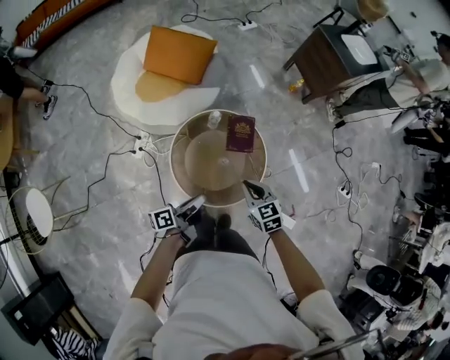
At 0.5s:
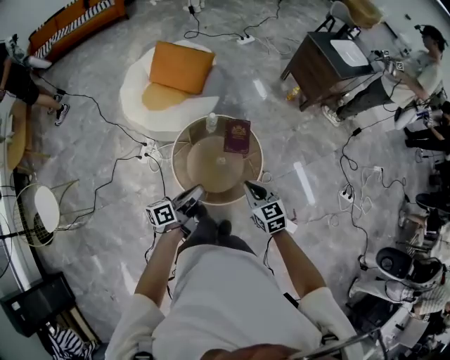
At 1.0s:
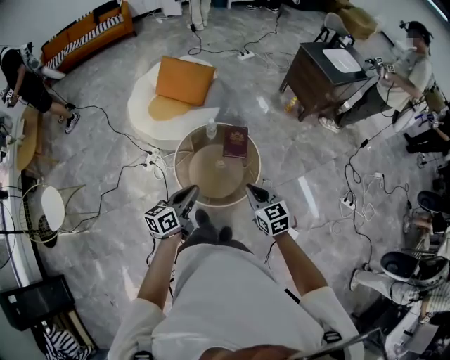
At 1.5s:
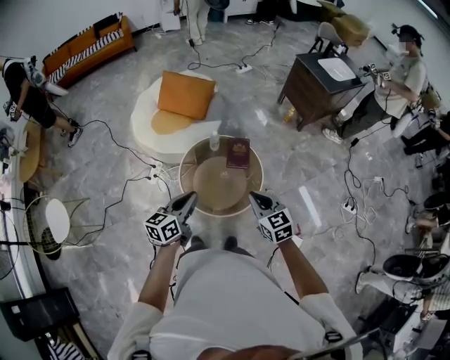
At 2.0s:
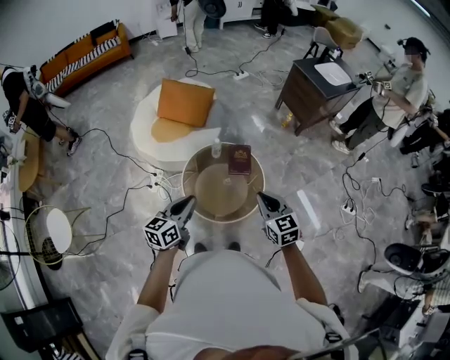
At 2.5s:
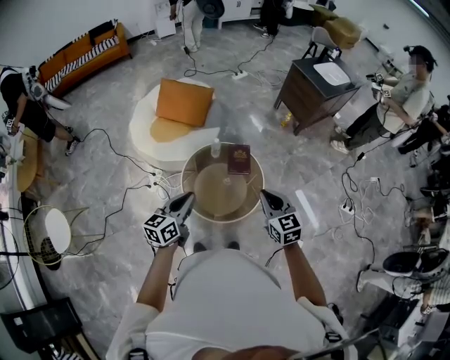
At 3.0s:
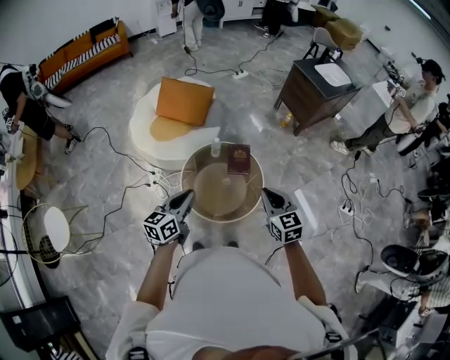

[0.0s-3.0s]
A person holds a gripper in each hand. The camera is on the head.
0.0s to 1.5s: The right gripper is displaced upward by approximately 15 cm.
1.5s to 3.0s: The right gripper travels upward by some 5 cm.

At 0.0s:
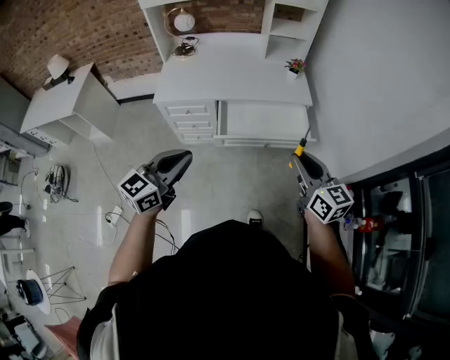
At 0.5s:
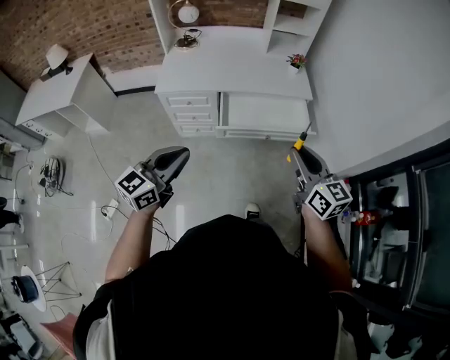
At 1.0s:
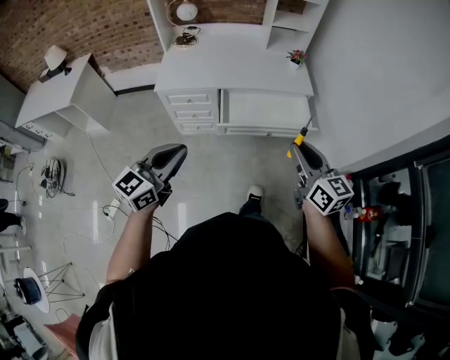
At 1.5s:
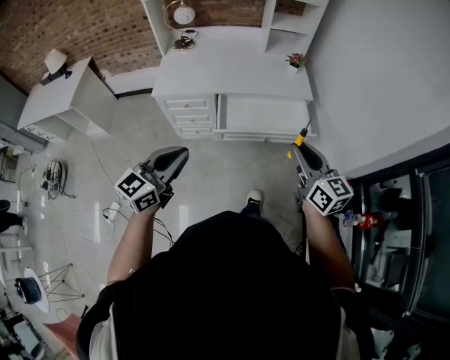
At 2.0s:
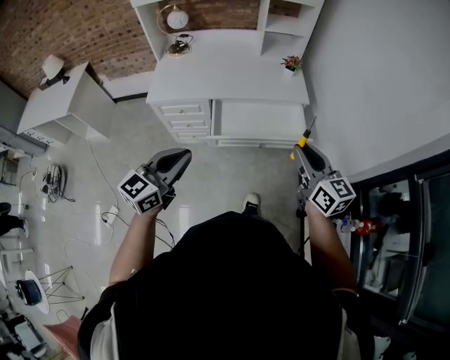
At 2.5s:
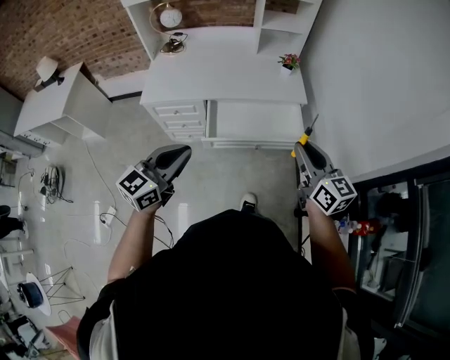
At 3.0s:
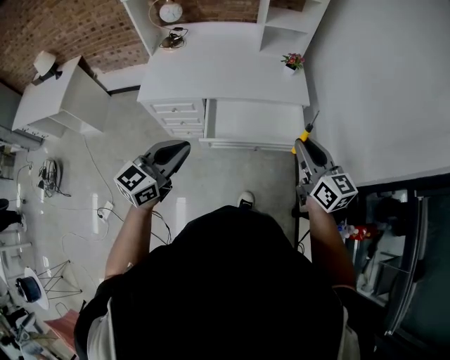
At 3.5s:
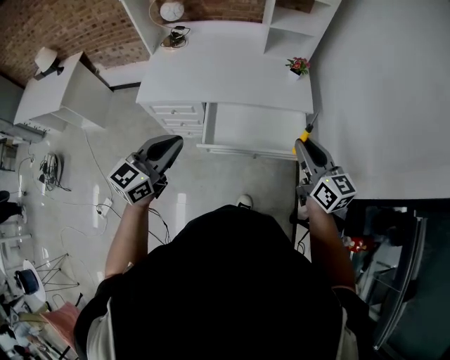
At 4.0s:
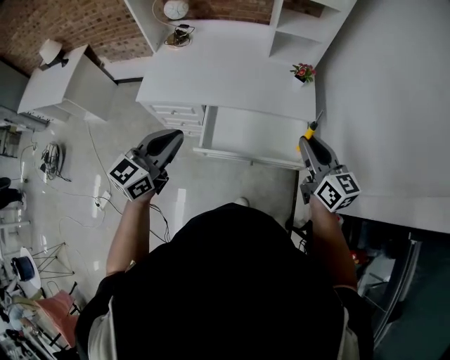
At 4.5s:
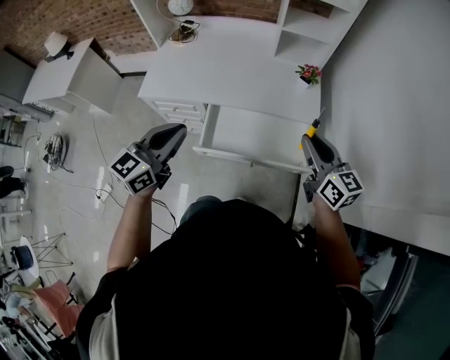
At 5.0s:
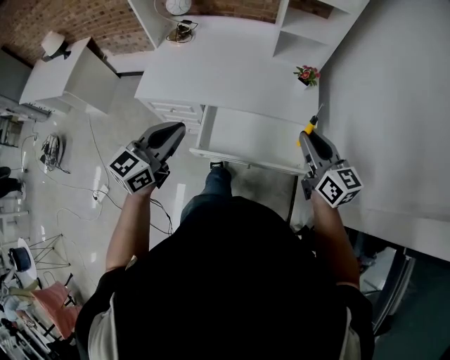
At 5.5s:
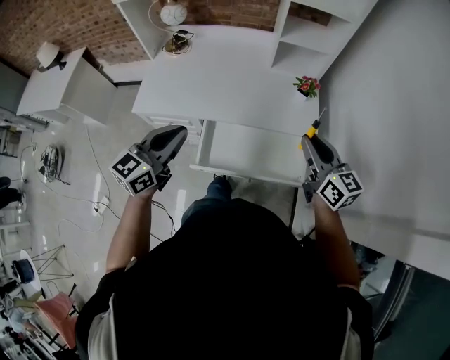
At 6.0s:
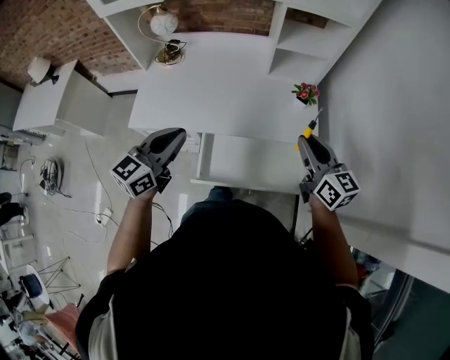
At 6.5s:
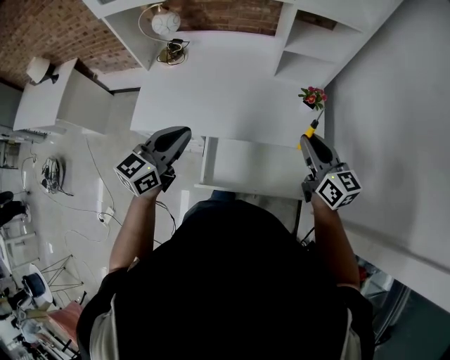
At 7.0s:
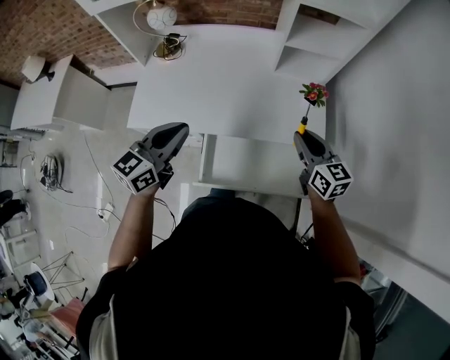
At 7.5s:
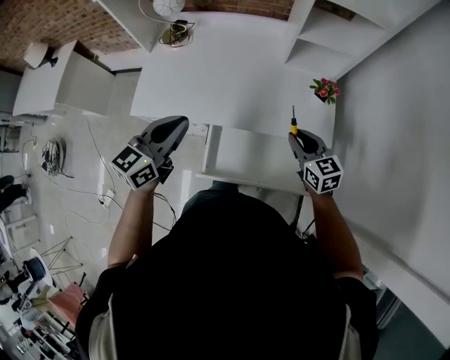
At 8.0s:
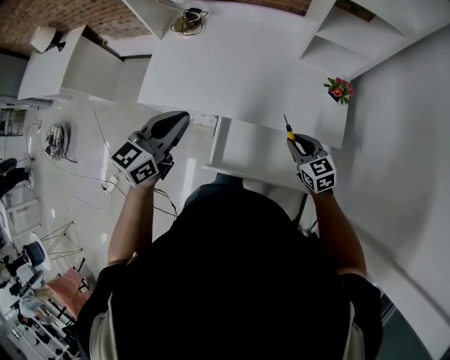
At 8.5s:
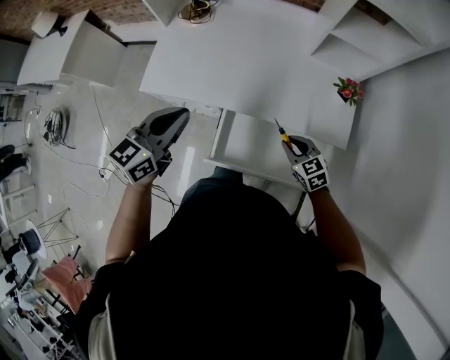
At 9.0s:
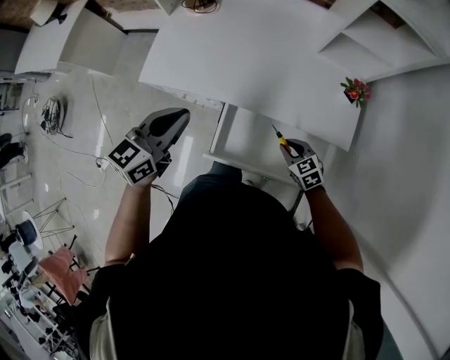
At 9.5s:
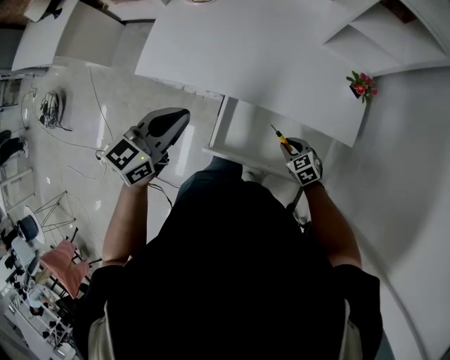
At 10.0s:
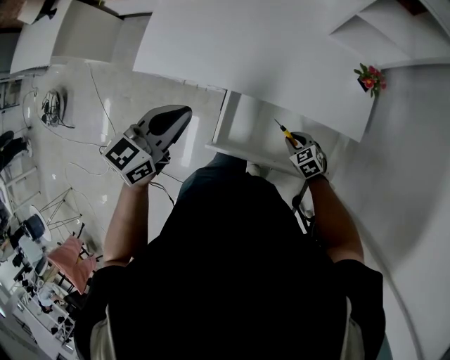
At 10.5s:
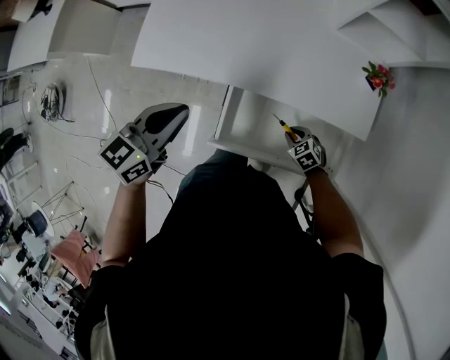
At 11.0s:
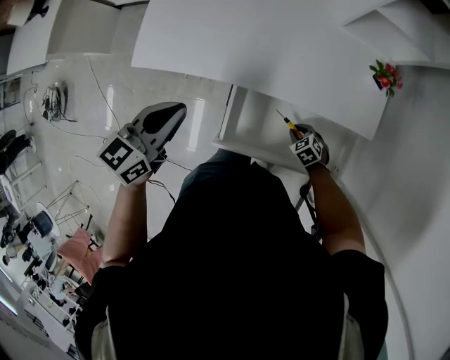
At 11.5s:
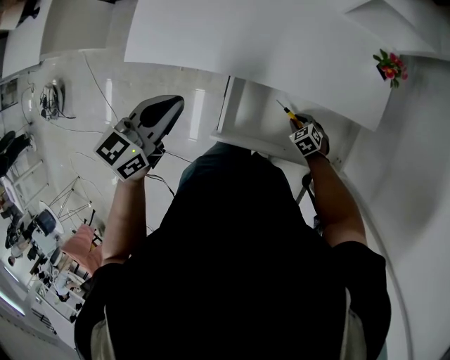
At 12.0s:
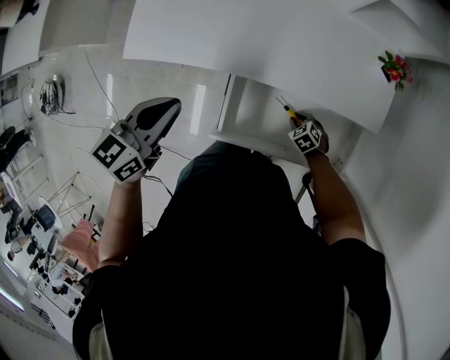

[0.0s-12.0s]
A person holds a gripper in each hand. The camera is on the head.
0.0s to 2.0s: The right gripper shifts by some 5 cm.
2.0s to 4.0s: Both grippers move forward, some 20 cm.
4.0s to 6.0s: Both grippers move forward, some 15 cm.
6.0s to 8.0s: The right gripper is displaced downward by roughly 20 cm, and rotates some 40 degrees. Meanwhile the left gripper heads forward and to the left, covering about 10 cm.
8.0s to 10.0s: The right gripper is displaced downward by roughly 20 cm, and rotates roughly 30 degrees; the left gripper goes approximately 10 cm downward.
10.0s to 12.0s: The right gripper shifts approximately 10 cm downward; the left gripper heads downward, covering roughly 5 cm.

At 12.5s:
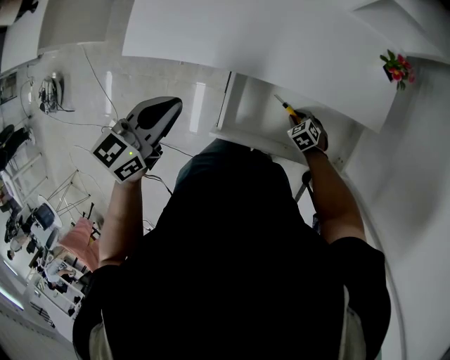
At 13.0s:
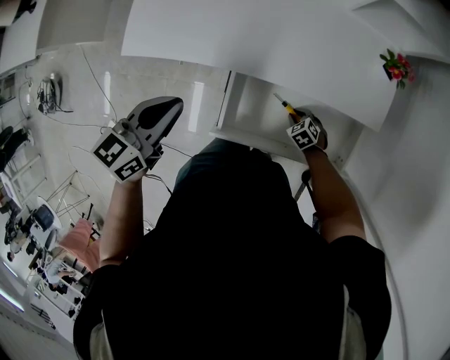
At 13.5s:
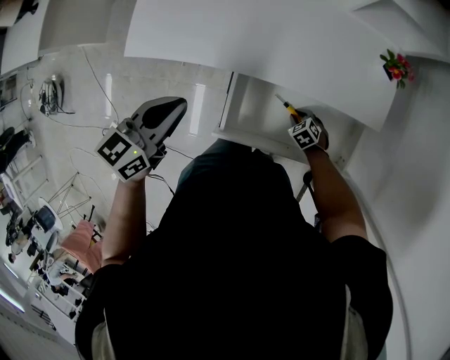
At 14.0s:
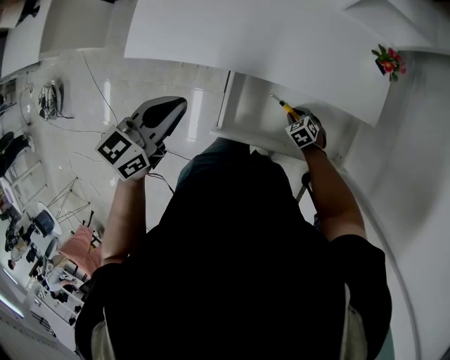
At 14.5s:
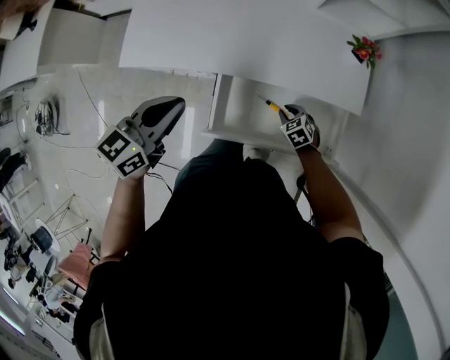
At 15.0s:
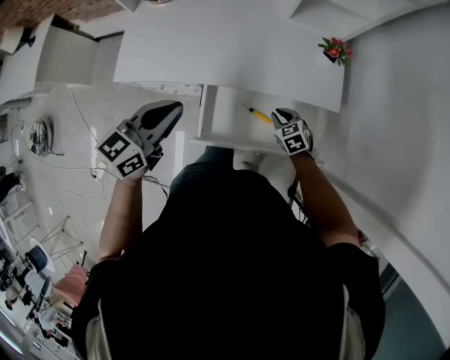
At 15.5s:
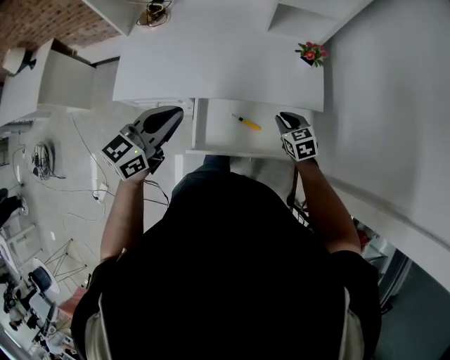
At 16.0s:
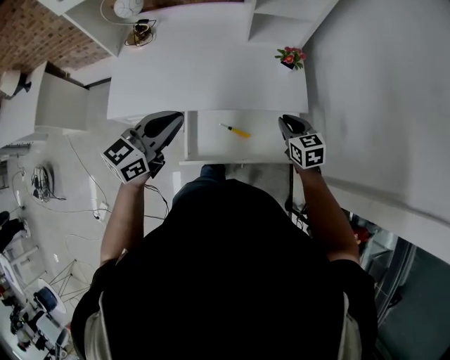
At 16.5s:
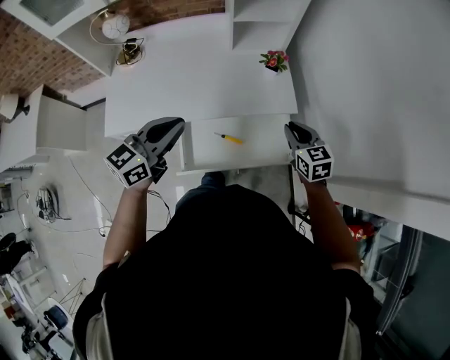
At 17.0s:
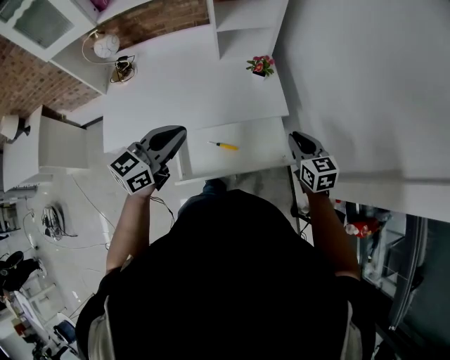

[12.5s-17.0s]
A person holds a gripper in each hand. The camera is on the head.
12.5s to 14.5s: The right gripper moves upward, approximately 10 cm. The left gripper travels upward by about 5 cm.
14.5s to 17.0s: The left gripper moves about 25 cm, and turns by roughly 20 degrees; the right gripper moves upward, about 35 cm, and tilts its fingers approximately 30 degrees upward.

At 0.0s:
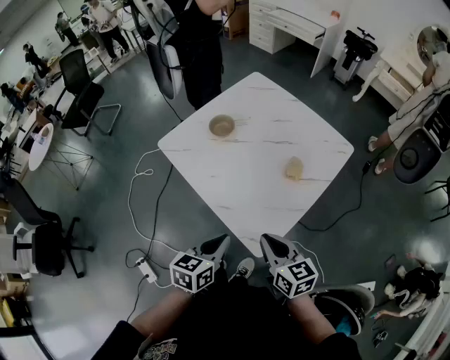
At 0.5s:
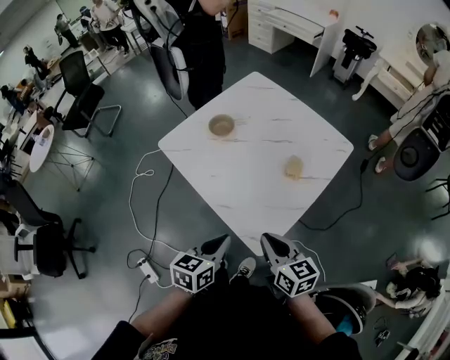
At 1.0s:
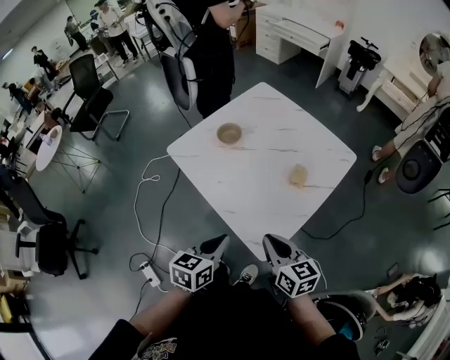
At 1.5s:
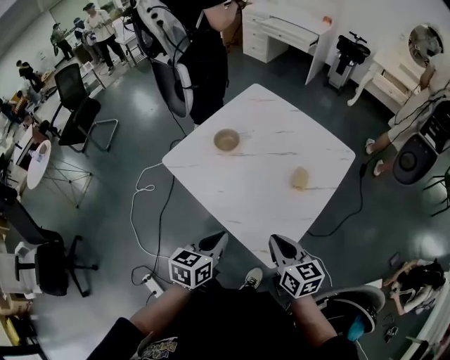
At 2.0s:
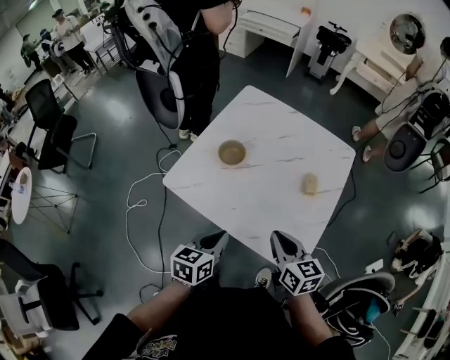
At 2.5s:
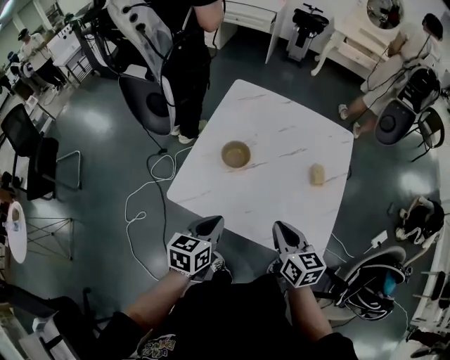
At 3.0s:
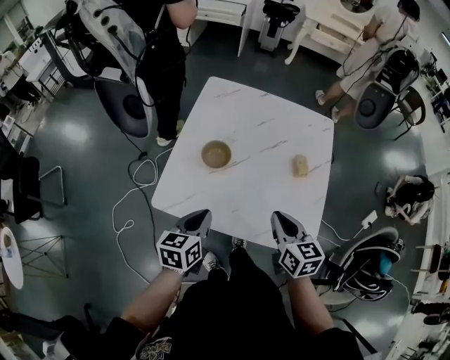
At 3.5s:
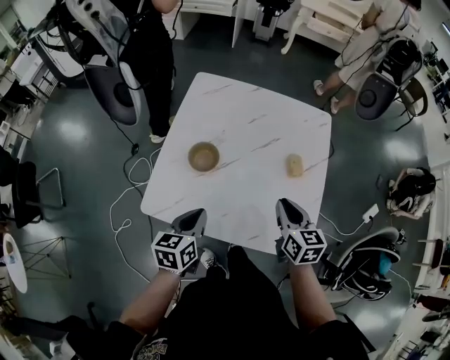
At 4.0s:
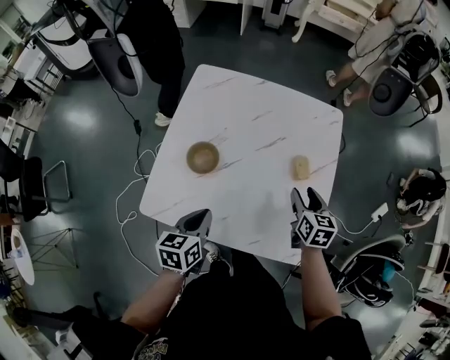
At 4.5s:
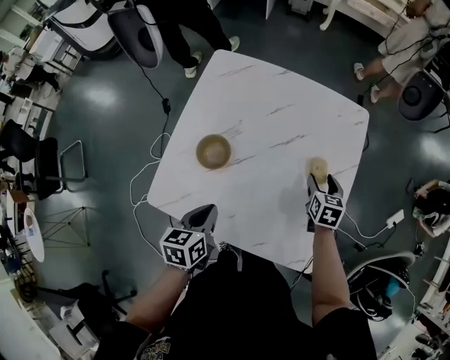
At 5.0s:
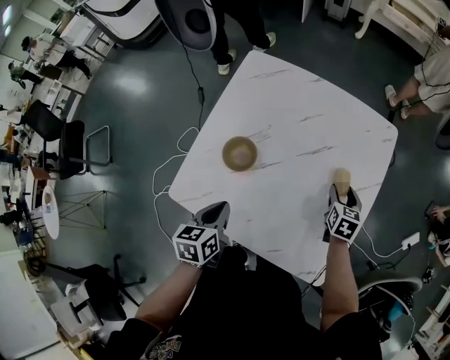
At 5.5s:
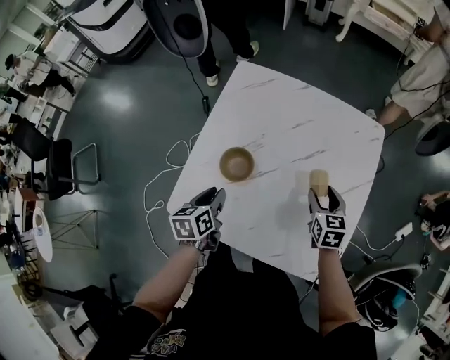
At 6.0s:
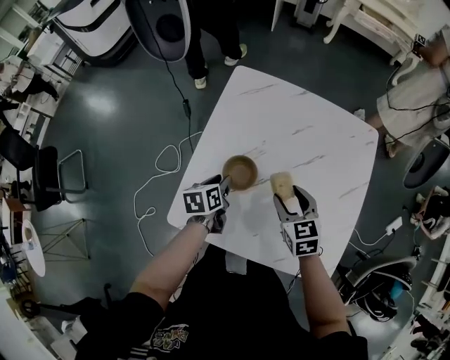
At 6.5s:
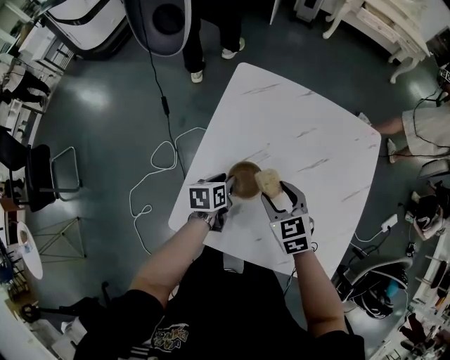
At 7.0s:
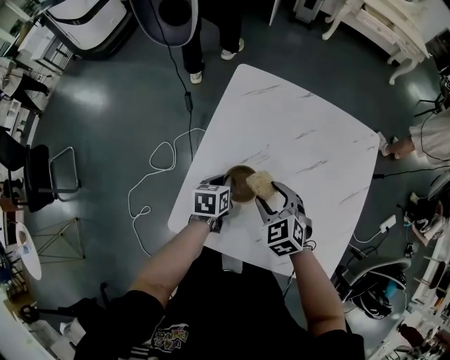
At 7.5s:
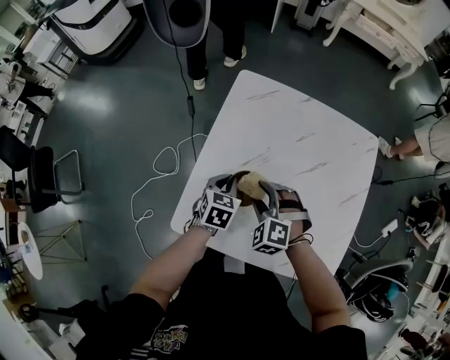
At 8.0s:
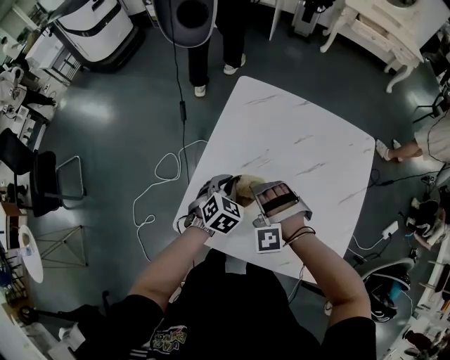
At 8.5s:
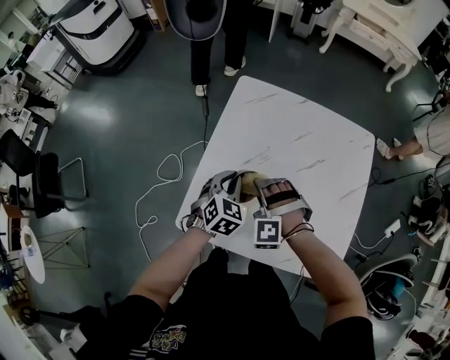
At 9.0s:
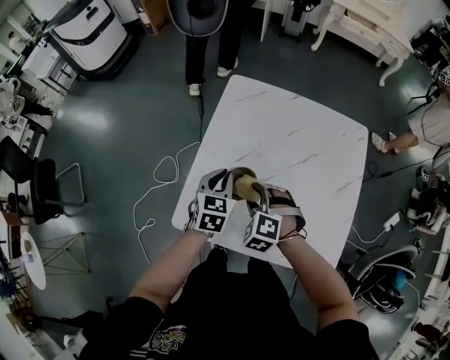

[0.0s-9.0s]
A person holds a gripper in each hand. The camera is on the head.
0.0s to 2.0s: Both grippers move to the left and forward, roughly 20 cm. The right gripper rotates some 20 degrees.
2.0s to 4.5s: The right gripper heads forward, downward and to the right, covering some 35 cm, rotates roughly 40 degrees, and opens, while the left gripper is displaced forward by approximately 15 cm.
4.5s to 7.0s: The left gripper heads forward, downward and to the left, covering approximately 20 cm, and opens, then closes once more, while the right gripper shifts roughly 30 cm to the left, and twists roughly 40 degrees counterclockwise, seen from behind.
7.0s to 9.0s: The left gripper moves upward, roughly 10 cm, and rotates approximately 30 degrees. The right gripper shifts by roughly 5 cm, and swivels approximately 30 degrees.
